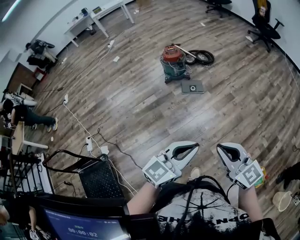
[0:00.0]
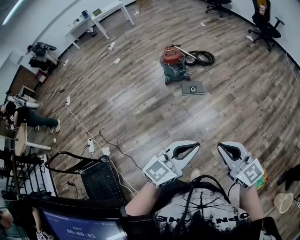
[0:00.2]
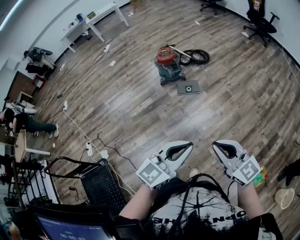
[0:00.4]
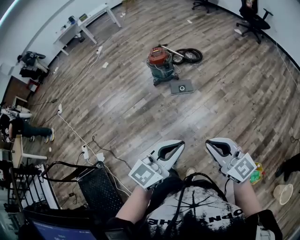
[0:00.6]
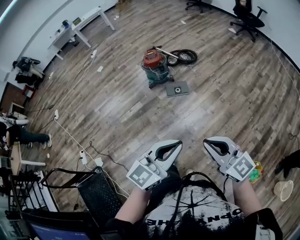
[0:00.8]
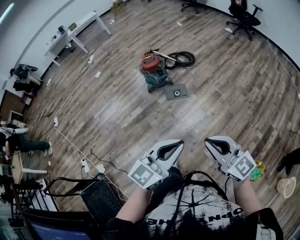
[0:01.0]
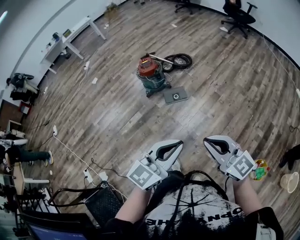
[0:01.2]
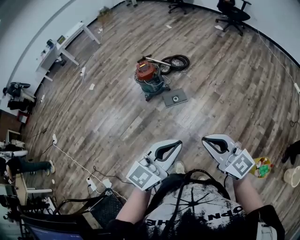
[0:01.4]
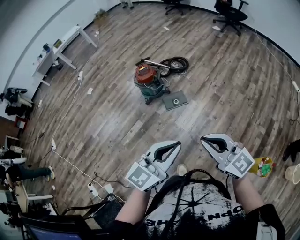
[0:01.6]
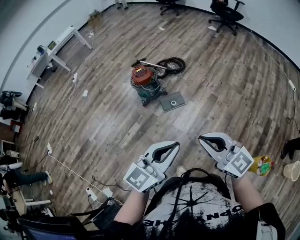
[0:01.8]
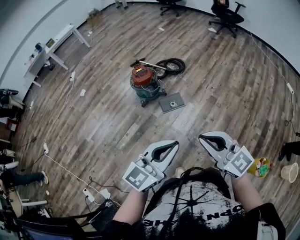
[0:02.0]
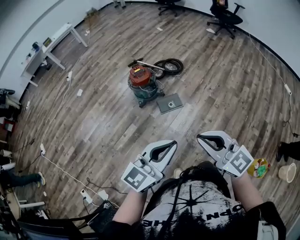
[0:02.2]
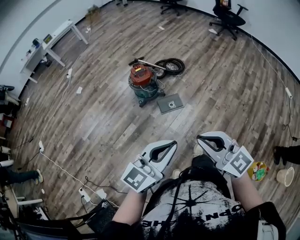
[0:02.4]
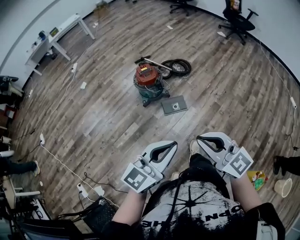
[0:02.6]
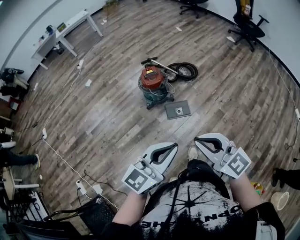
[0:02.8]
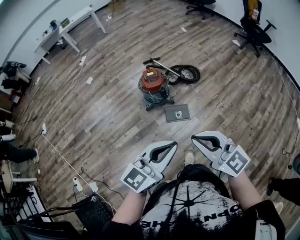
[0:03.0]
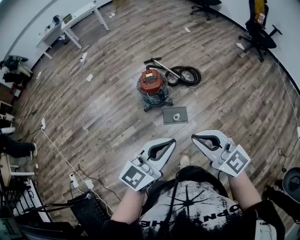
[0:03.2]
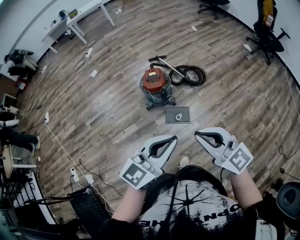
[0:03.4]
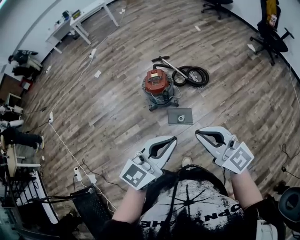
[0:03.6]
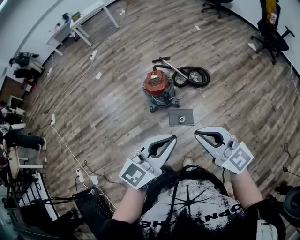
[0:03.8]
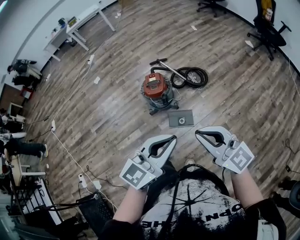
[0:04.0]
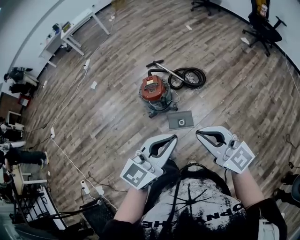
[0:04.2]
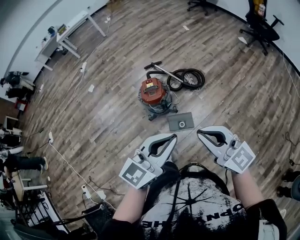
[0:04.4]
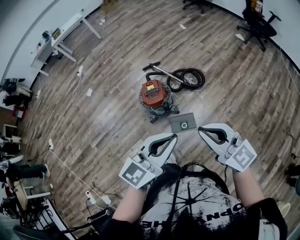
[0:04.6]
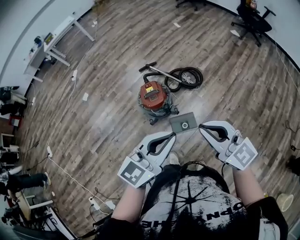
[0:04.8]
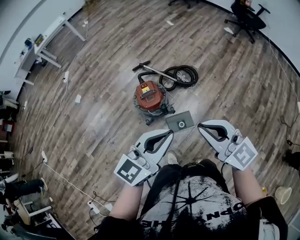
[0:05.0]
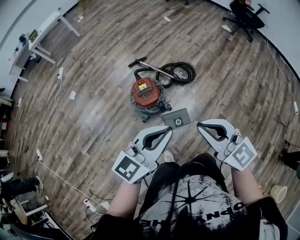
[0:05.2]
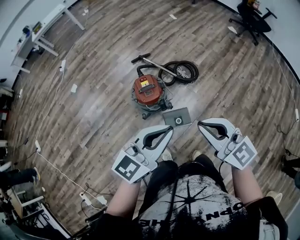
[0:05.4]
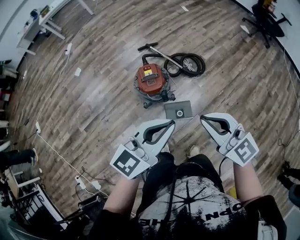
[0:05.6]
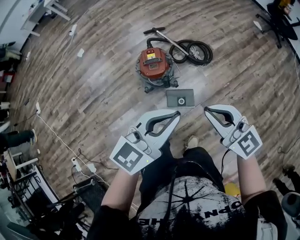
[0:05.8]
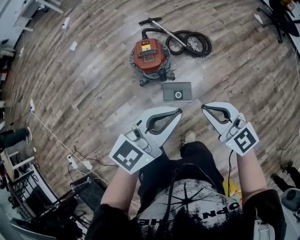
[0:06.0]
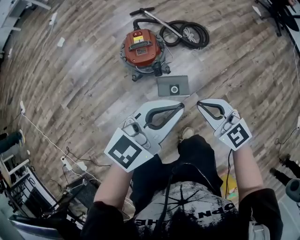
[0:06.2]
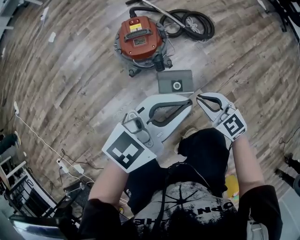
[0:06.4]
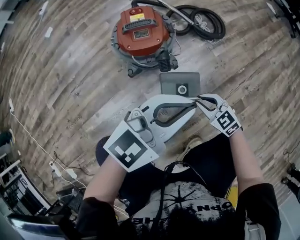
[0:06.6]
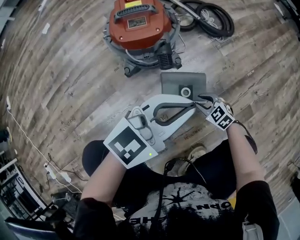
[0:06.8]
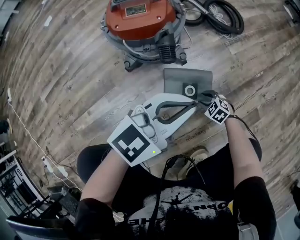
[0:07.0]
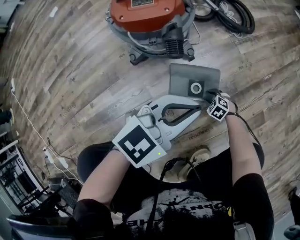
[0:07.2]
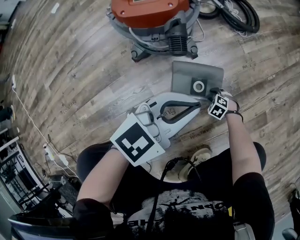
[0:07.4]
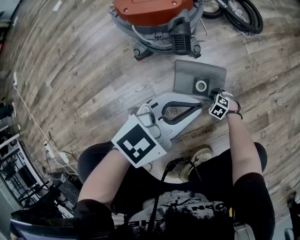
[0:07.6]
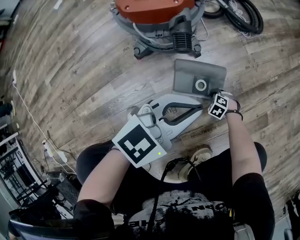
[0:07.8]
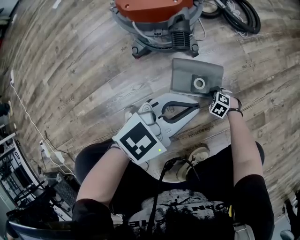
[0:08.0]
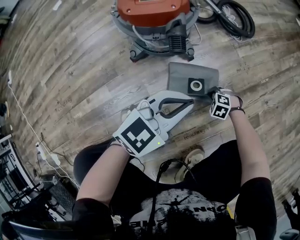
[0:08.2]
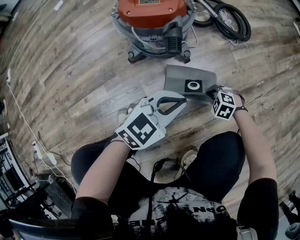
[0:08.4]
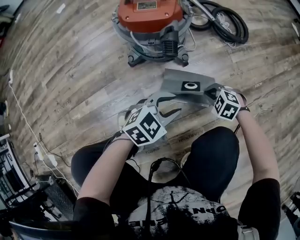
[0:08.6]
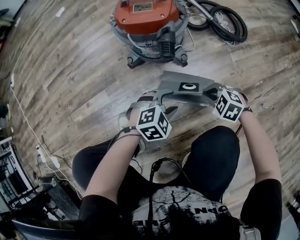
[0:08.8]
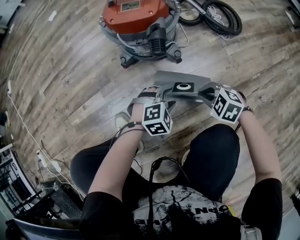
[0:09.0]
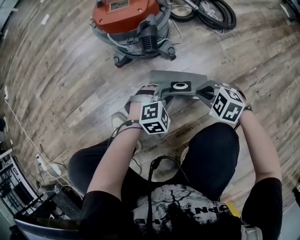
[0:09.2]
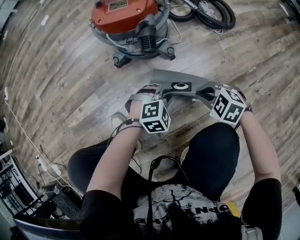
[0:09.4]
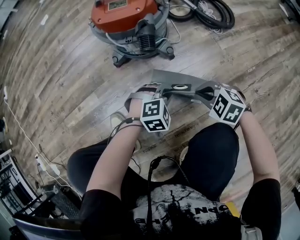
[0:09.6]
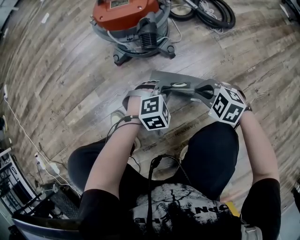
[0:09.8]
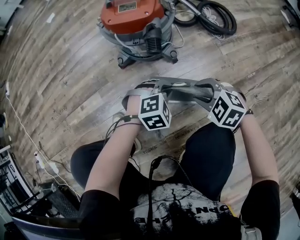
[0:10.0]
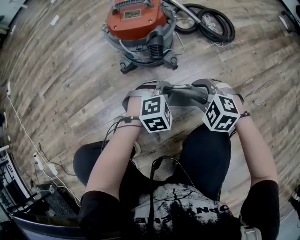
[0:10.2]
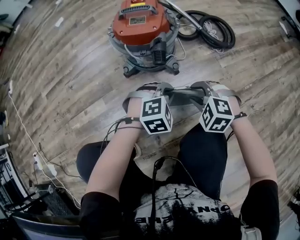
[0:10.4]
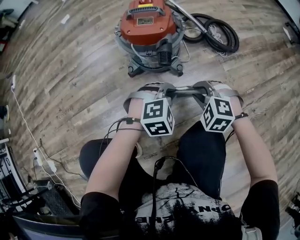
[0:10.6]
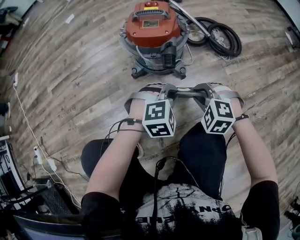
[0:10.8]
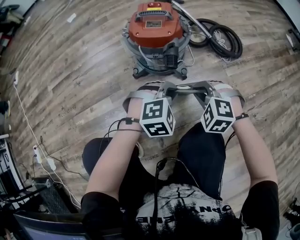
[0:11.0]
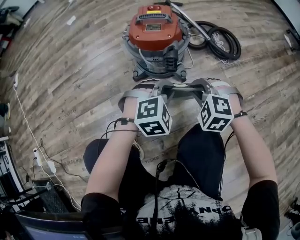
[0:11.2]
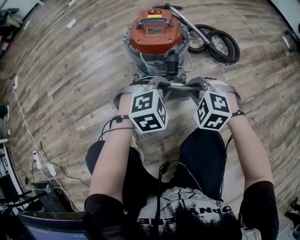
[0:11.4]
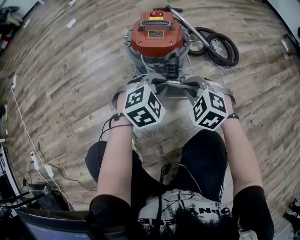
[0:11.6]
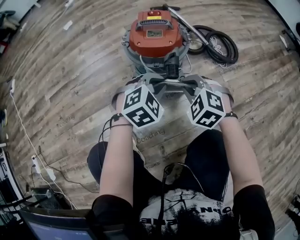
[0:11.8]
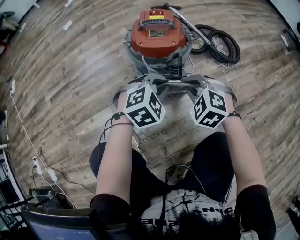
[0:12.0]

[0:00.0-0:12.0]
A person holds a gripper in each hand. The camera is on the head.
0:00.0 to 0:01.6: Both grippers move forward, approximately 20 cm.
0:01.6 to 0:03.0: The two grippers go roughly 25 cm forward.
0:03.0 to 0:04.4: Both grippers move forward and to the right, some 20 cm.
0:04.4 to 0:06.0: The right gripper moves downward and forward, approximately 20 cm. The left gripper moves forward and downward, approximately 15 cm.
0:06.0 to 0:07.6: The left gripper moves downward, some 60 cm, and changes its angle by about 20 degrees. Meanwhile the right gripper is displaced downward by about 90 cm, points its fingers some 70 degrees further downward, and opens up.
0:07.6 to 0:09.0: The left gripper goes about 20 cm downward, tilts its fingers some 40 degrees downward, and opens up. Meanwhile the right gripper moves upward, some 25 cm, swivels some 20 degrees, and closes its fingers.
0:09.0 to 0:10.4: The two grippers go about 10 cm upward. The right gripper opens. The left gripper closes up.
0:10.4 to 0:12.0: Both grippers travel together to the left, forward and upward, roughly 15 cm. The right gripper closes up.

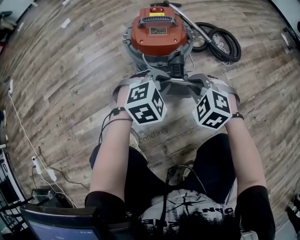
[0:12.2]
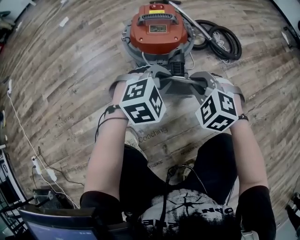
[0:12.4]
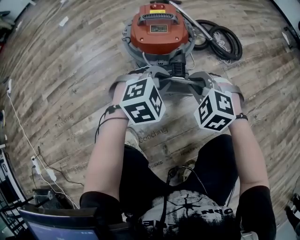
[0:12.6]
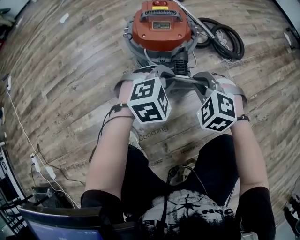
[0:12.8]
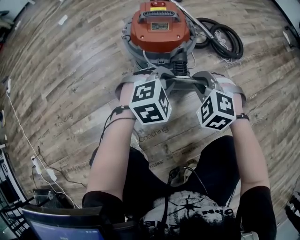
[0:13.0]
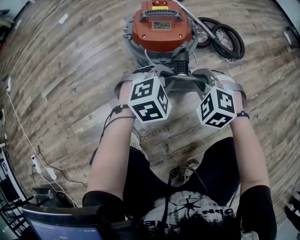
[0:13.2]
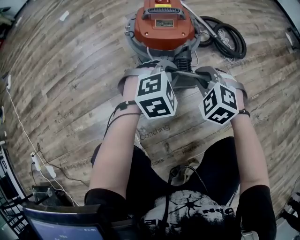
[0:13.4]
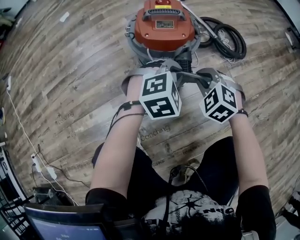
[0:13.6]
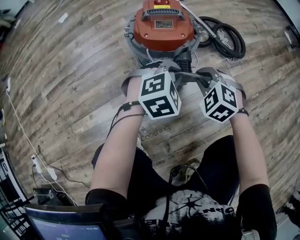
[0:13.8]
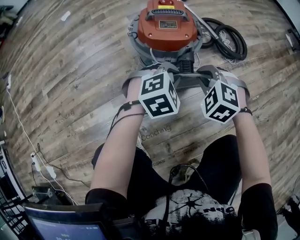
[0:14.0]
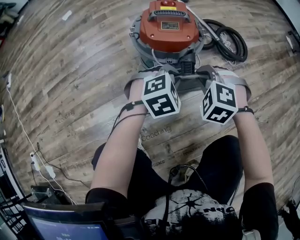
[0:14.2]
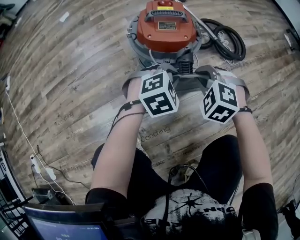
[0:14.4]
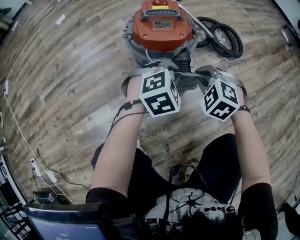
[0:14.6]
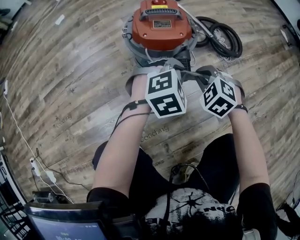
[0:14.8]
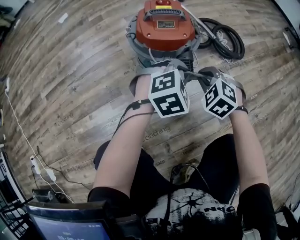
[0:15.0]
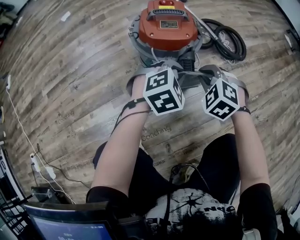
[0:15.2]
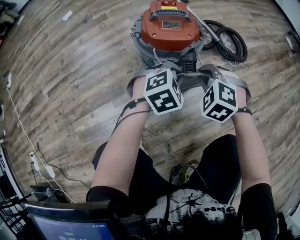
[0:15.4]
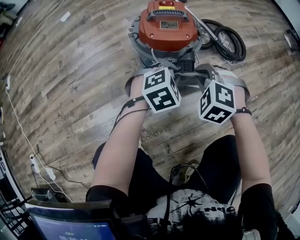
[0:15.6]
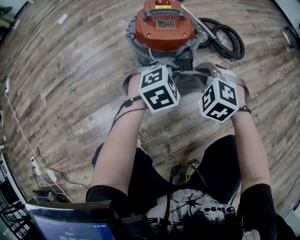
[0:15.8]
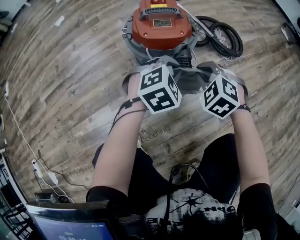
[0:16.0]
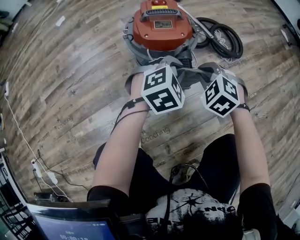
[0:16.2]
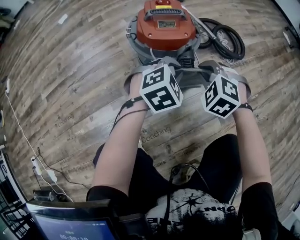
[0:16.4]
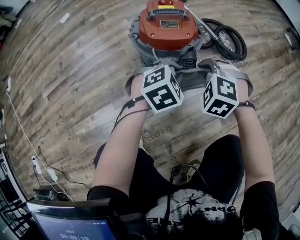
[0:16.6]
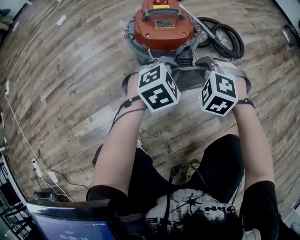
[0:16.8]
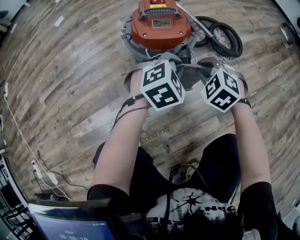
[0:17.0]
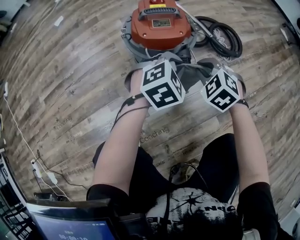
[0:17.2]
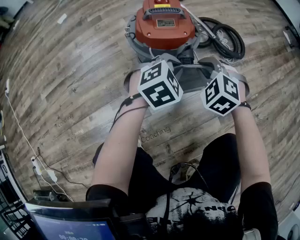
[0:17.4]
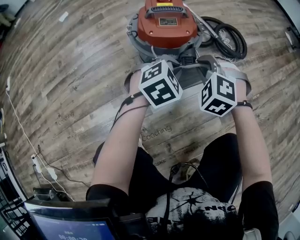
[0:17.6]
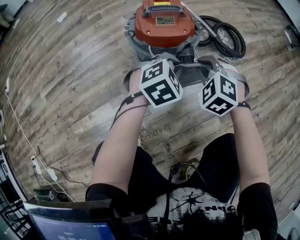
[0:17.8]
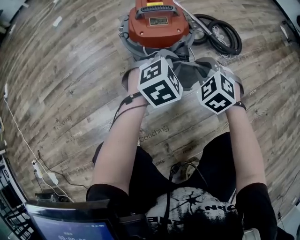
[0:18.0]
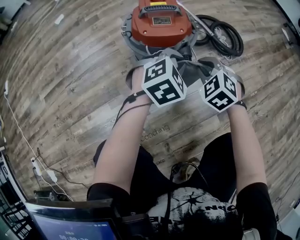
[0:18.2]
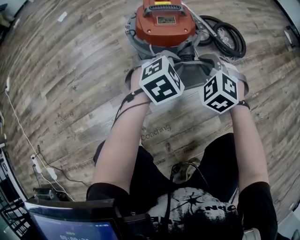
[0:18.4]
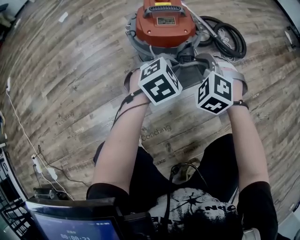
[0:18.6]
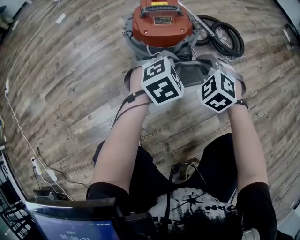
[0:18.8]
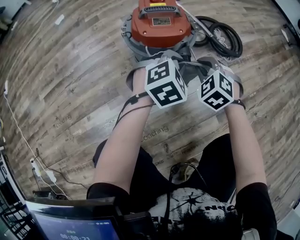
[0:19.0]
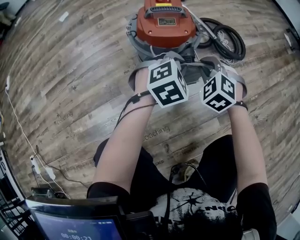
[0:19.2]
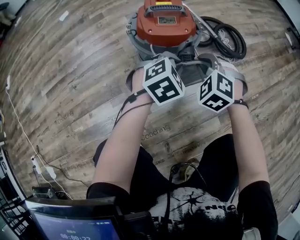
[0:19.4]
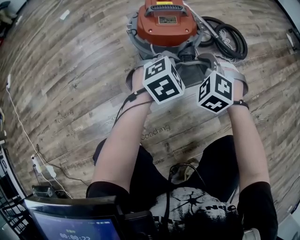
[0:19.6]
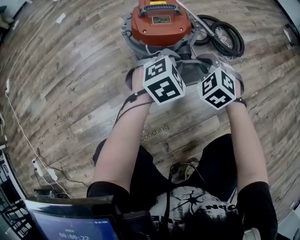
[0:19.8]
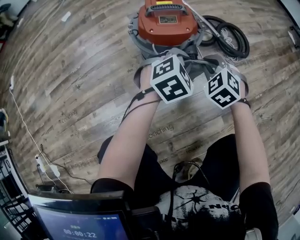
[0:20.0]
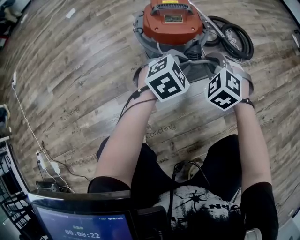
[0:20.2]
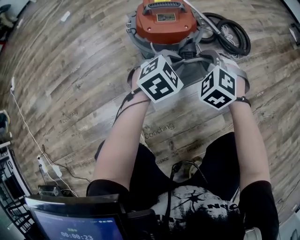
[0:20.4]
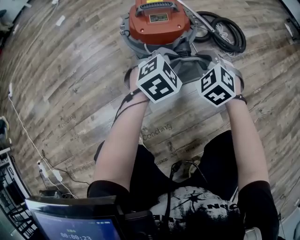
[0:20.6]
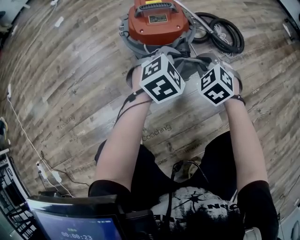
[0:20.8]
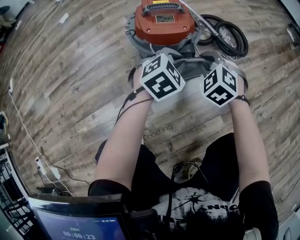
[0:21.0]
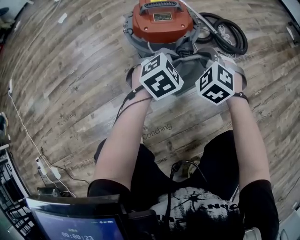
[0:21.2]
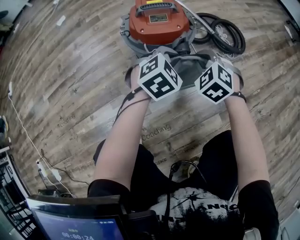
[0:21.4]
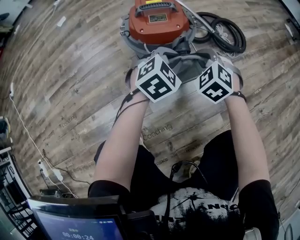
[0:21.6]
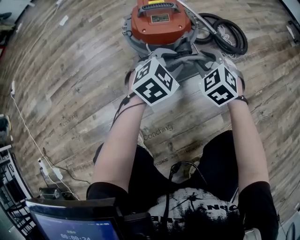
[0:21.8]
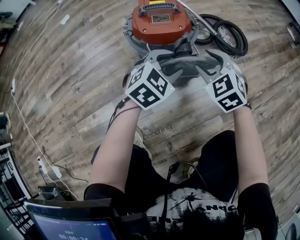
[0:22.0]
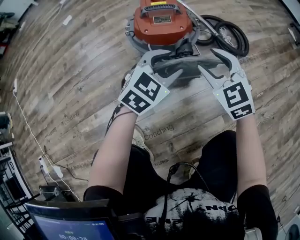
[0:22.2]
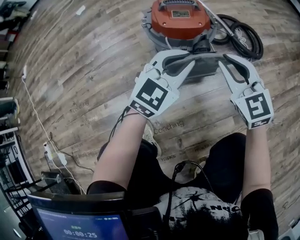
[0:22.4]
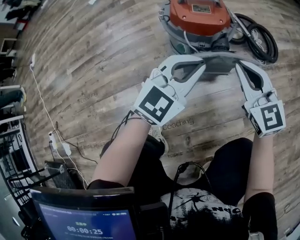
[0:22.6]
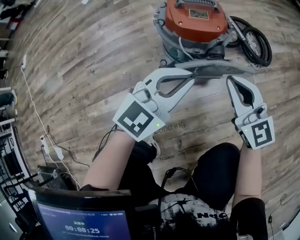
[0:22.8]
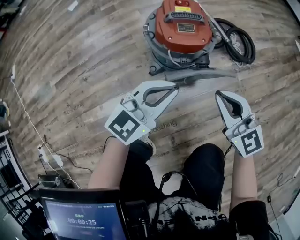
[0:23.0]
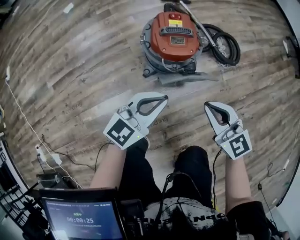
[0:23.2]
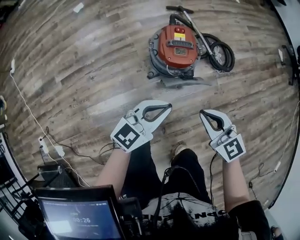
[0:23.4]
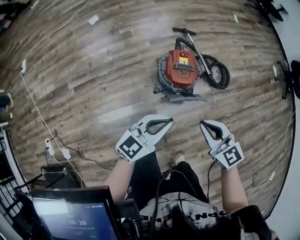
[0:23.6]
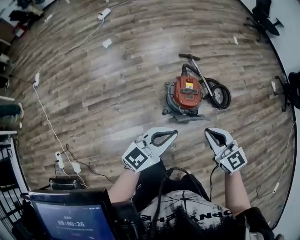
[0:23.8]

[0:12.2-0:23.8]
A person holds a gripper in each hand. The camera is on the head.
0:12.2 to 0:16.6: The grippers make only small movements.
0:16.6 to 0:18.0: The right gripper turns by about 20 degrees.
0:18.0 to 0:21.0: The grippers move only a little.
0:21.0 to 0:22.4: Both grippers travel together upward, about 10 cm. The left gripper swivels approximately 30 degrees, and opens, then closes once more. The right gripper rotates approximately 40 degrees, and opens, then closes once more.
0:22.4 to 0:23.8: The grippers both shift upward by about 50 cm. The left gripper swivels roughly 20 degrees.
